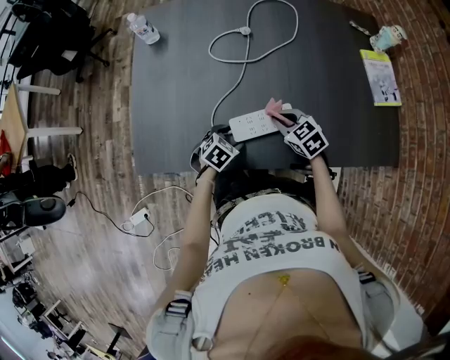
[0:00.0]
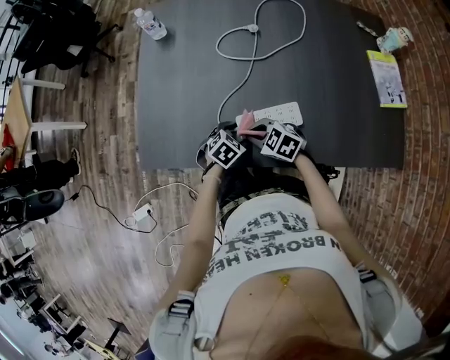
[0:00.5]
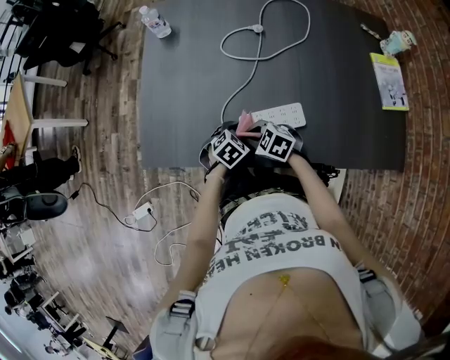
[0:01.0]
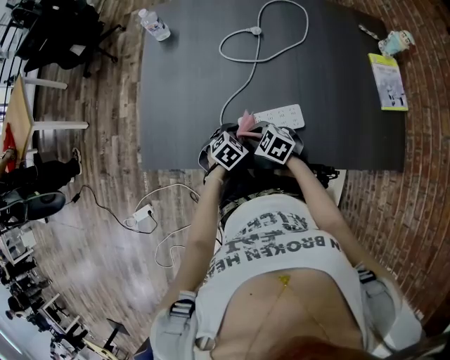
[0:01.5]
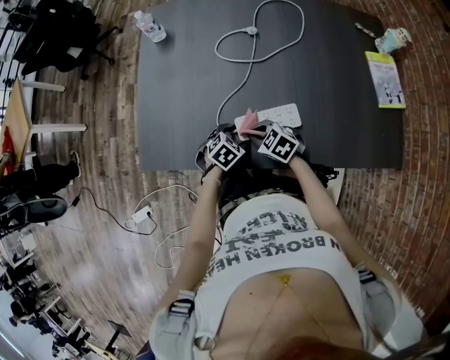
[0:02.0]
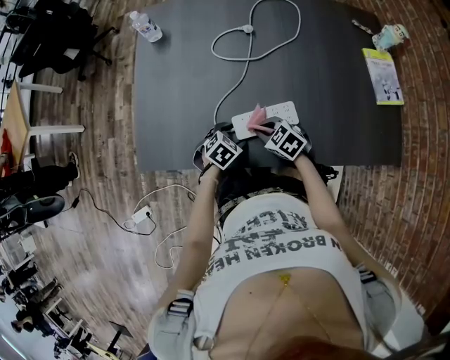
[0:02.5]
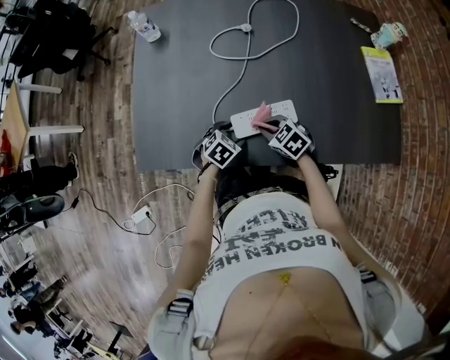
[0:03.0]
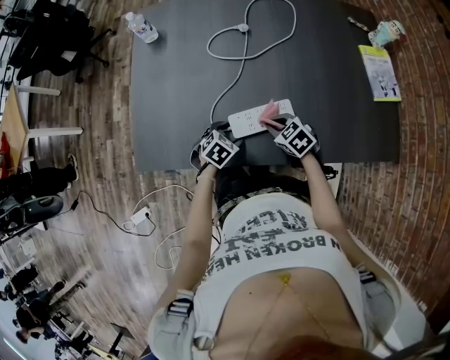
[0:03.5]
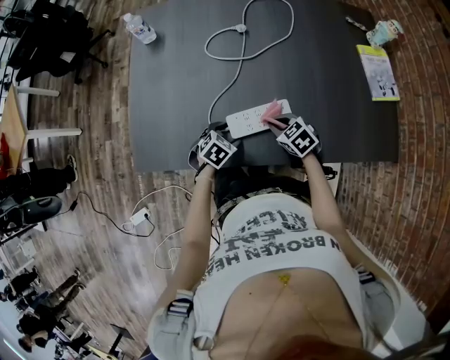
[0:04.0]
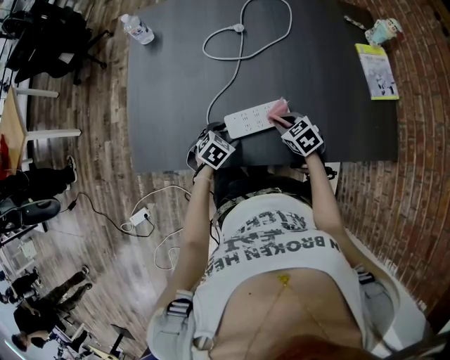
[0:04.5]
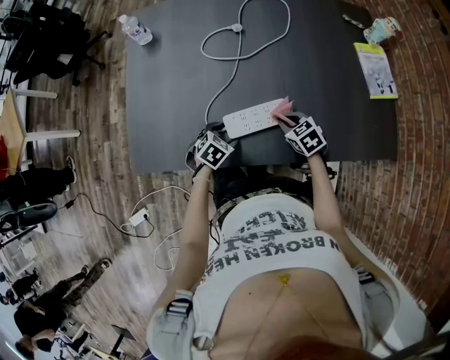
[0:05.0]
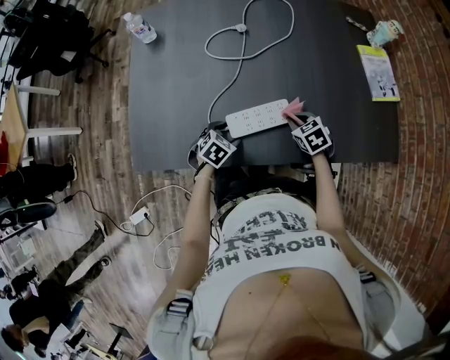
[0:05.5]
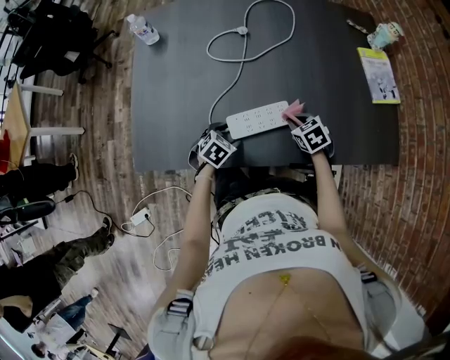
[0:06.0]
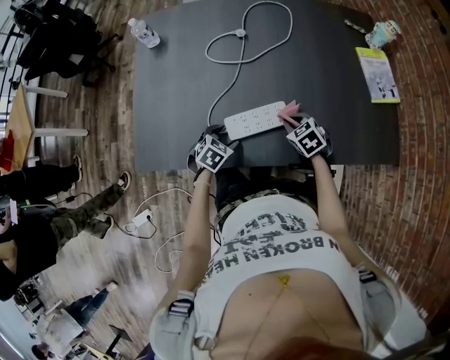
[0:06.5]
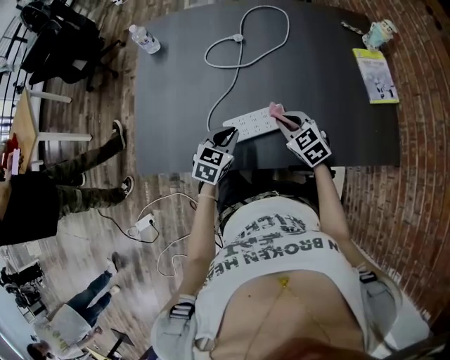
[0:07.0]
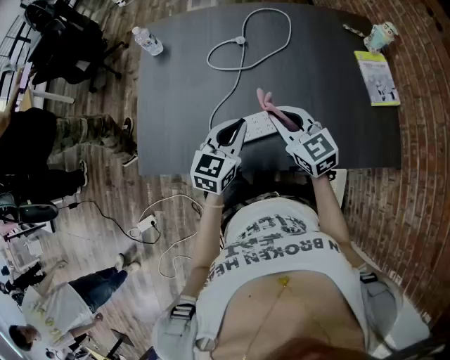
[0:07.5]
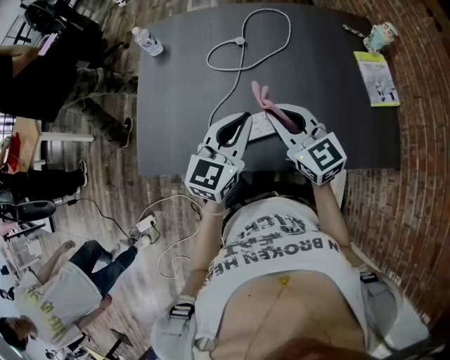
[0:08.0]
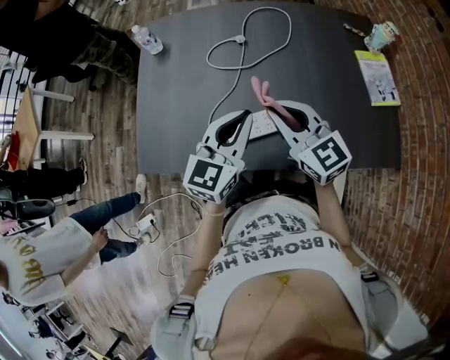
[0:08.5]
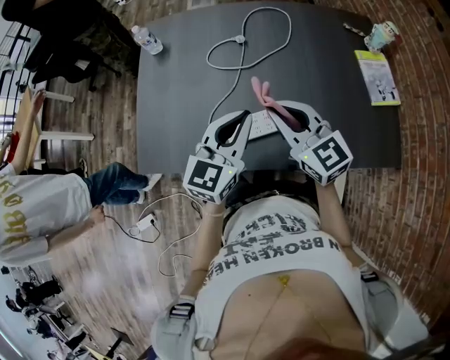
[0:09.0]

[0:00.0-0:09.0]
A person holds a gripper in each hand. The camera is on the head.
0:00.0 to 0:02.0: The right gripper ends up roughly 10 cm from where it was.
0:02.0 to 0:04.5: The right gripper ends up approximately 15 cm from where it was, and rotates some 20 degrees.
0:04.5 to 0:07.0: Both grippers travel together upward, roughly 10 cm. The left gripper turns by roughly 30 degrees, and closes up.
0:07.0 to 0:09.0: The grippers both shift upward by about 20 cm. The right gripper points its fingers some 30 degrees further upward. Meanwhile the left gripper turns by approximately 30 degrees.

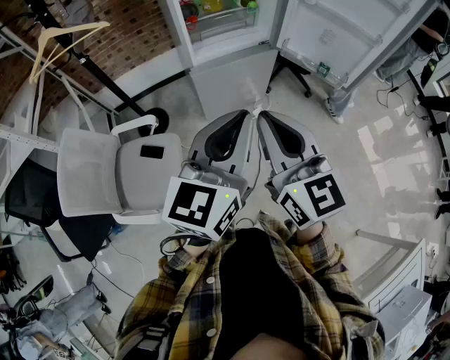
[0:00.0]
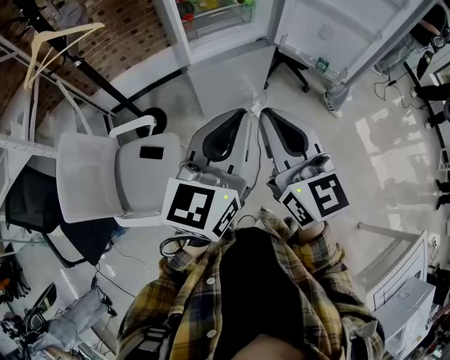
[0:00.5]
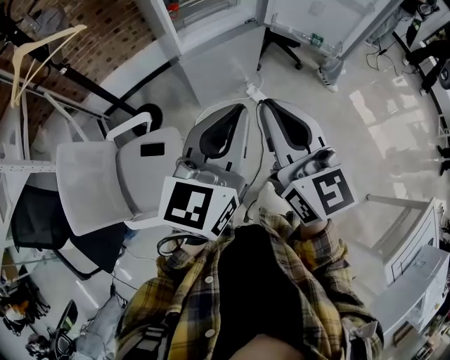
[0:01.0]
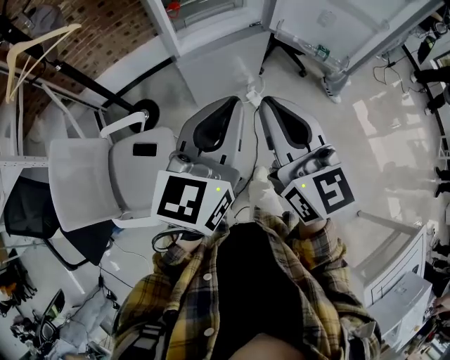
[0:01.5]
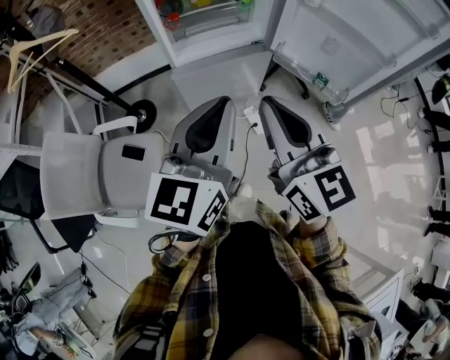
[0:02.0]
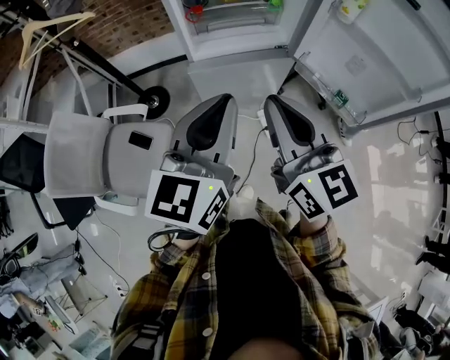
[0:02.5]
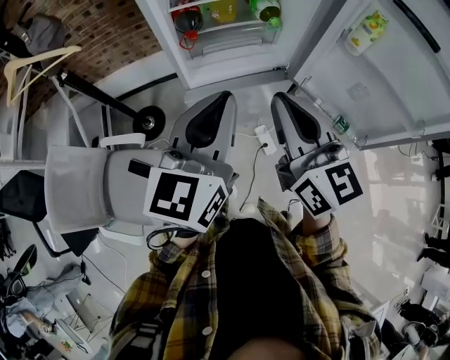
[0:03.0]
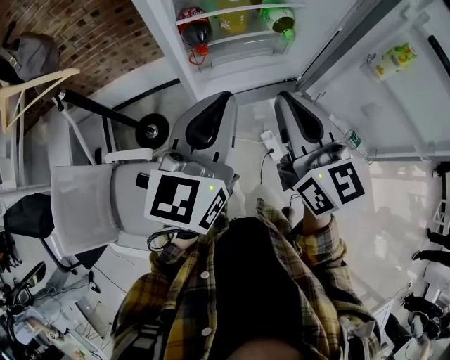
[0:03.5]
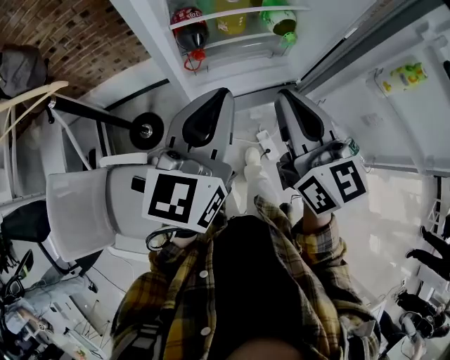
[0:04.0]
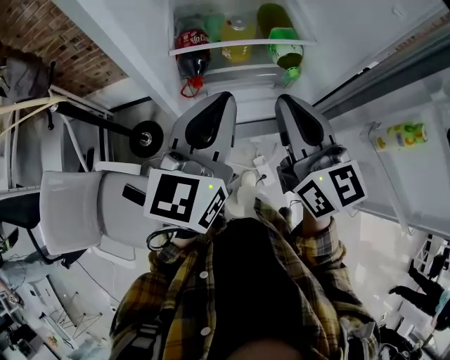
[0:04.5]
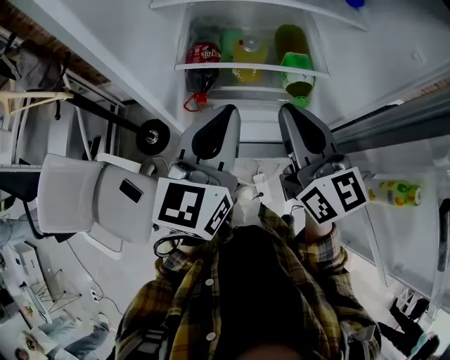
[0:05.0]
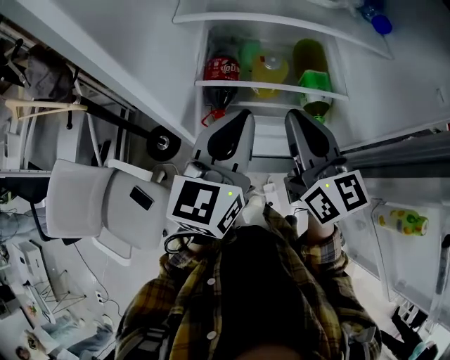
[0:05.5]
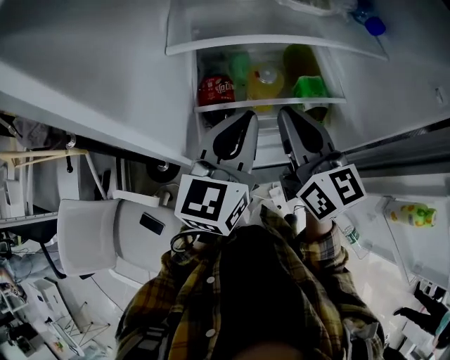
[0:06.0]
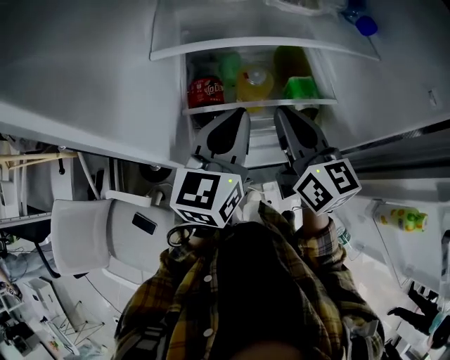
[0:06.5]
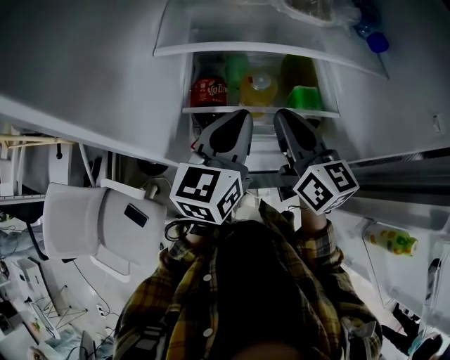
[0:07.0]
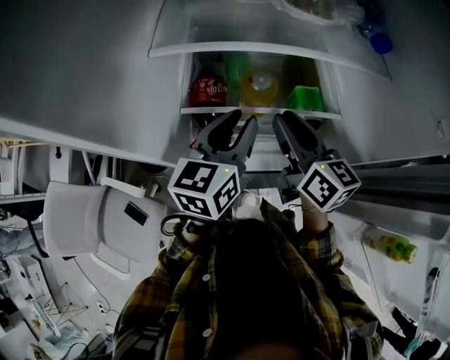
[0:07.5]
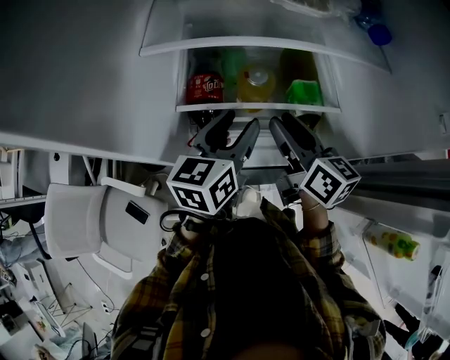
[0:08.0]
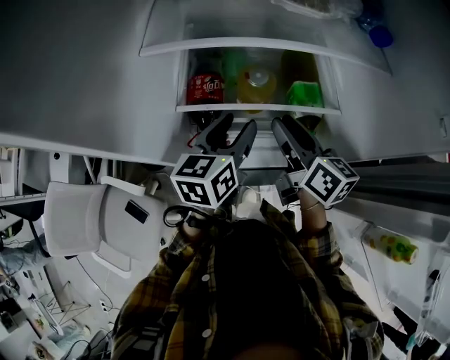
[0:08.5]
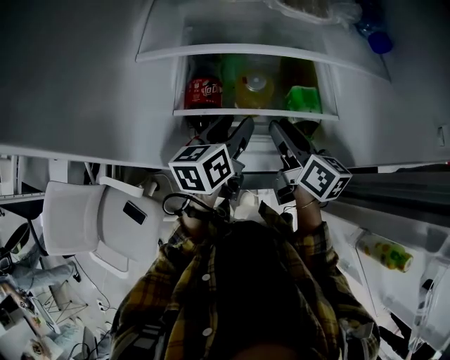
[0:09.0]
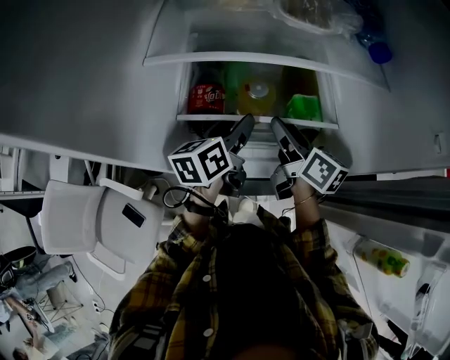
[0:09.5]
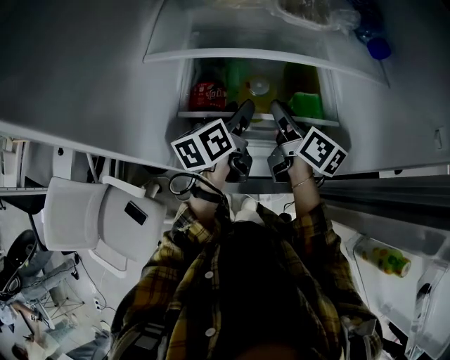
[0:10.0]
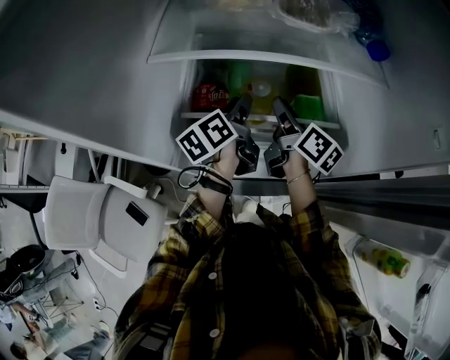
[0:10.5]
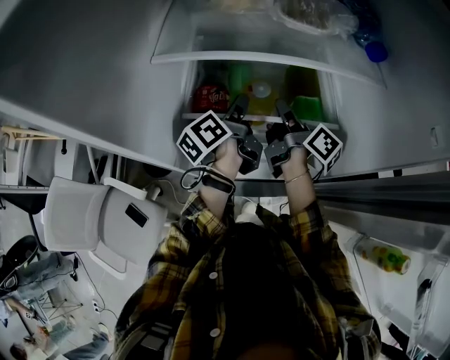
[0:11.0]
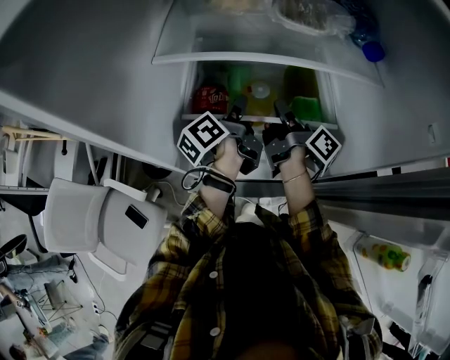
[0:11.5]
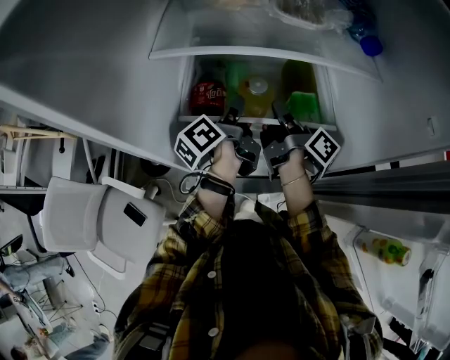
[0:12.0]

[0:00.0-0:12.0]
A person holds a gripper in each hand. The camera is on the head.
0:00.0 to 0:02.0: The left gripper is displaced forward by about 15 cm; the right gripper travels forward and to the right by roughly 15 cm.
0:02.0 to 0:04.0: The two grippers go some 30 cm forward.
0:04.0 to 0:06.0: The two grippers go some 20 cm forward.
0:06.0 to 0:08.0: The two grippers go roughly 10 cm downward. The left gripper opens up. Meanwhile the right gripper turns by approximately 20 degrees, and opens its fingers.
0:08.0 to 0:10.0: The grippers both shift forward by about 10 cm. The left gripper turns by some 20 degrees.
0:10.0 to 0:12.0: The right gripper changes its angle by roughly 40 degrees, and closes, while the left gripper changes its angle by approximately 30 degrees, and closes.

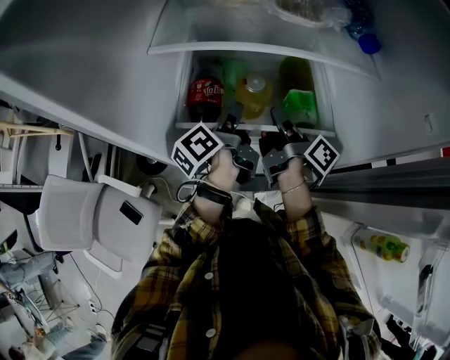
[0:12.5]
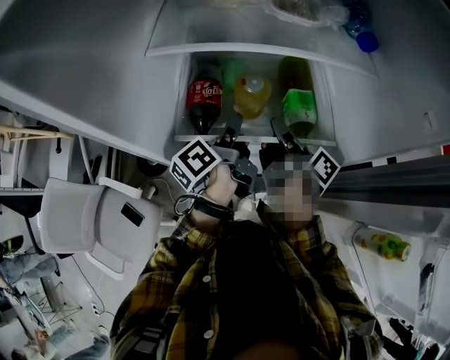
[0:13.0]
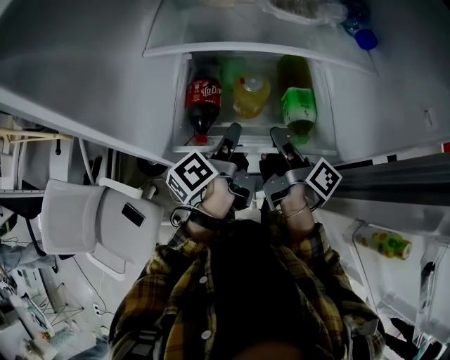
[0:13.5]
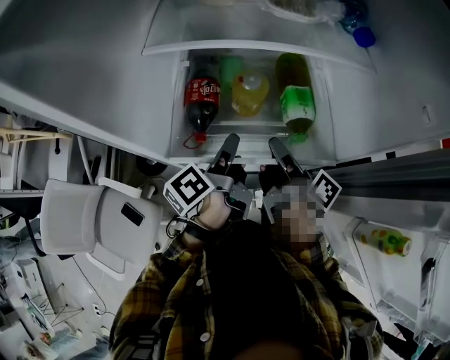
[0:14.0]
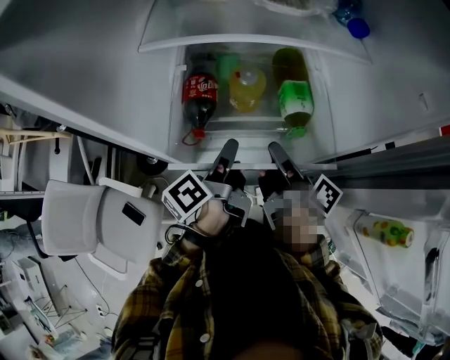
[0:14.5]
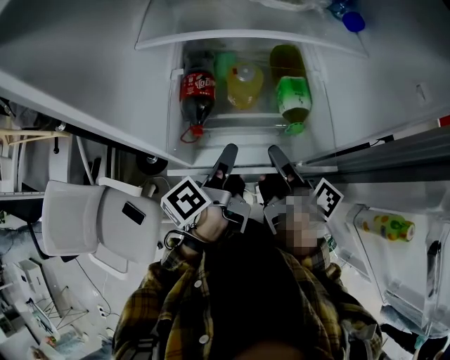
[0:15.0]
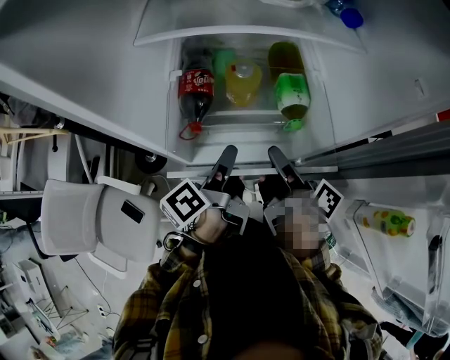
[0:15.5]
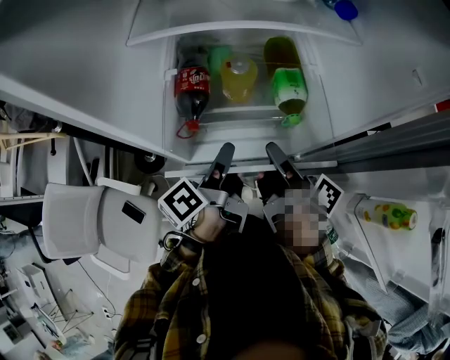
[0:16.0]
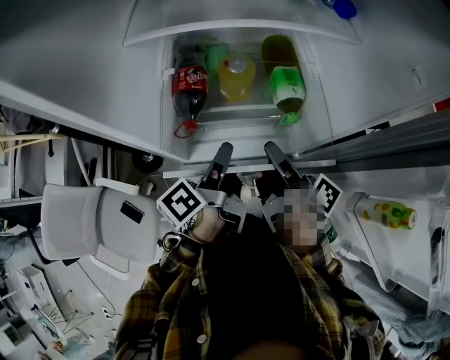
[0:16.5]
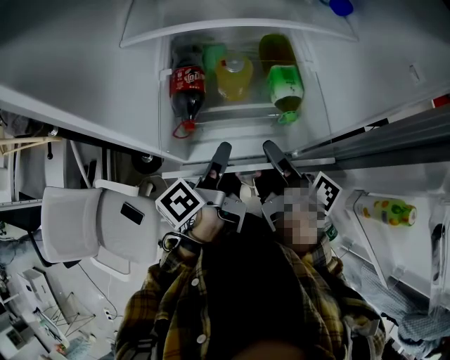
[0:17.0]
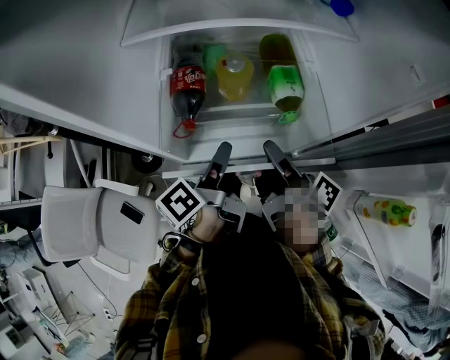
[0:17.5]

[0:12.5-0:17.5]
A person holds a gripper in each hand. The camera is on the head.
0:12.5 to 0:15.0: Both grippers move backward, roughly 15 cm.
0:15.0 to 0:17.5: Both grippers stay about where they are.

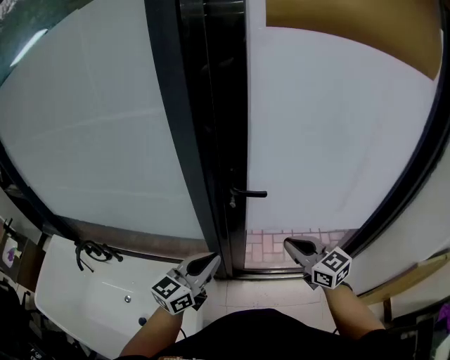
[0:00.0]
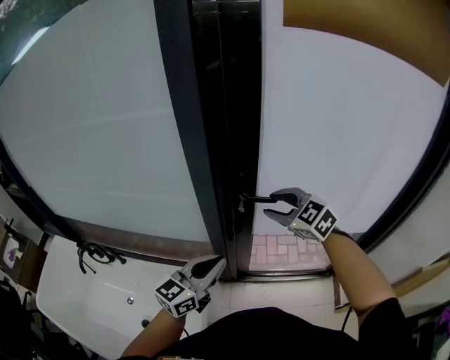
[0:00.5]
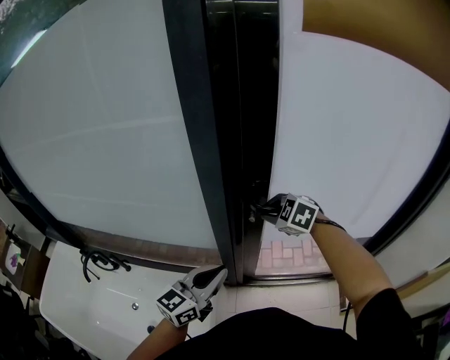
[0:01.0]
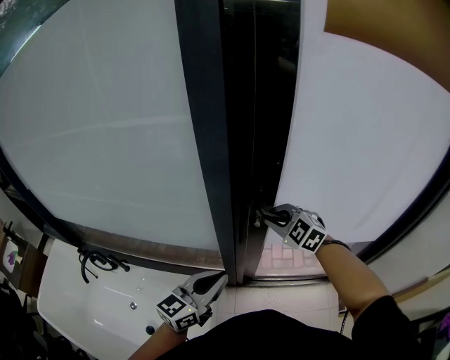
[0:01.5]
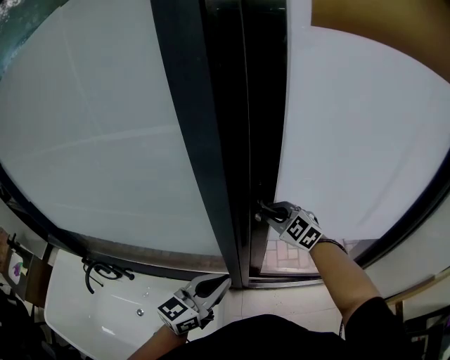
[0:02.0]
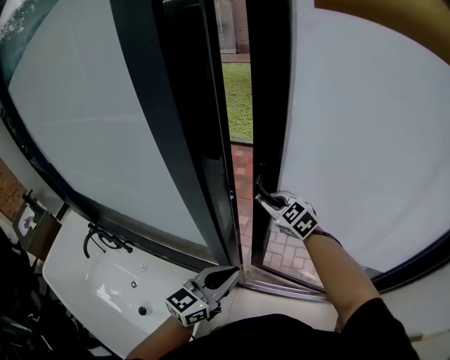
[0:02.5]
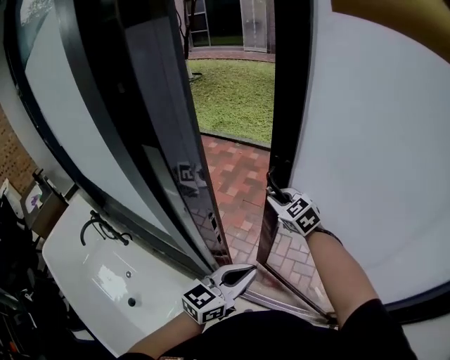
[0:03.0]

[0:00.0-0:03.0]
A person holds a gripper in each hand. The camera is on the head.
0:00.0 to 0:01.5: The left gripper heads to the left, covering roughly 5 cm; the right gripper shifts roughly 20 cm forward and to the left, changes its angle by about 40 degrees, and opens, then closes once more.
0:01.5 to 0:03.0: The right gripper heads forward, covering about 25 cm. The left gripper goes some 25 cm to the right and forward.
